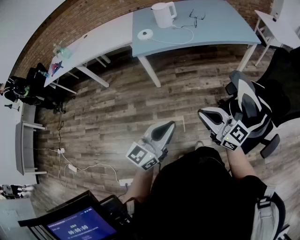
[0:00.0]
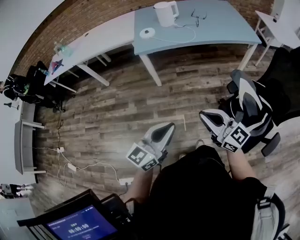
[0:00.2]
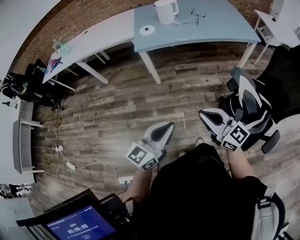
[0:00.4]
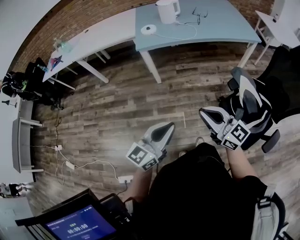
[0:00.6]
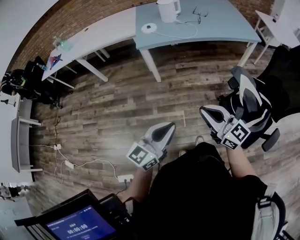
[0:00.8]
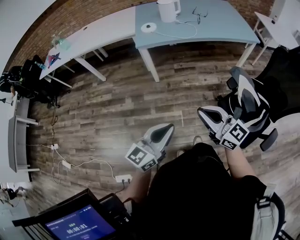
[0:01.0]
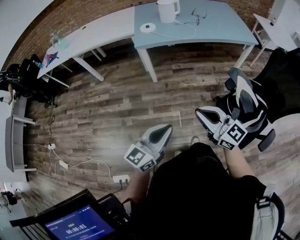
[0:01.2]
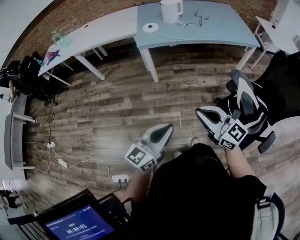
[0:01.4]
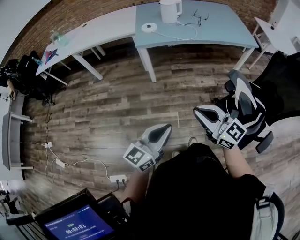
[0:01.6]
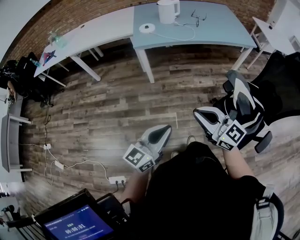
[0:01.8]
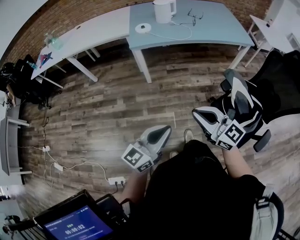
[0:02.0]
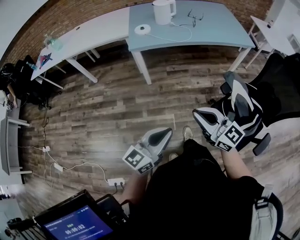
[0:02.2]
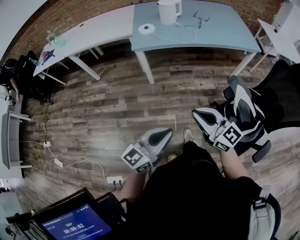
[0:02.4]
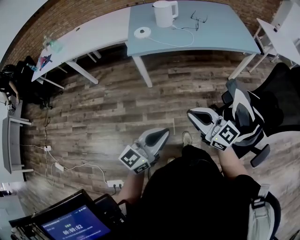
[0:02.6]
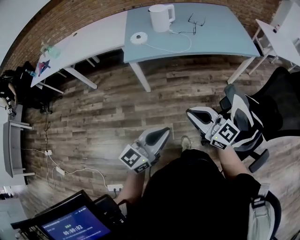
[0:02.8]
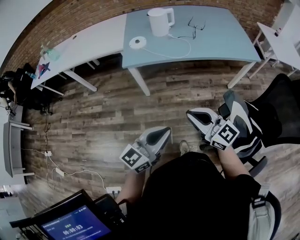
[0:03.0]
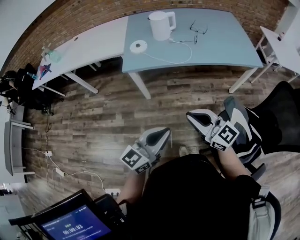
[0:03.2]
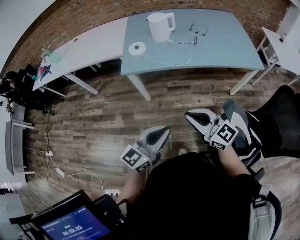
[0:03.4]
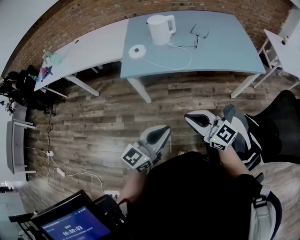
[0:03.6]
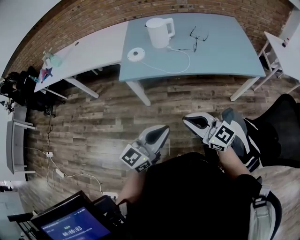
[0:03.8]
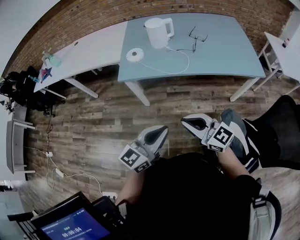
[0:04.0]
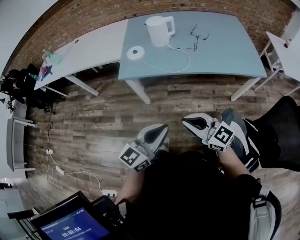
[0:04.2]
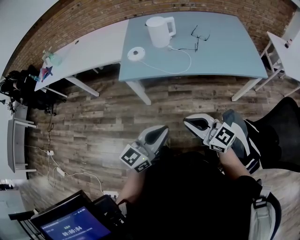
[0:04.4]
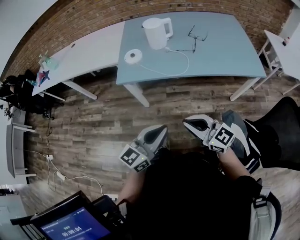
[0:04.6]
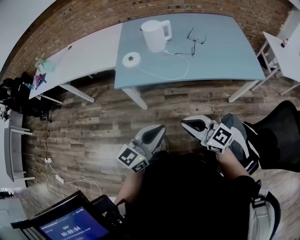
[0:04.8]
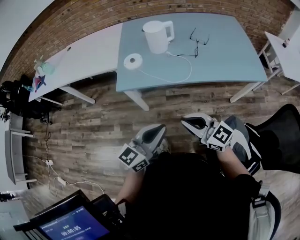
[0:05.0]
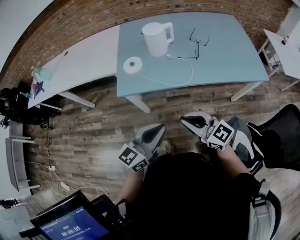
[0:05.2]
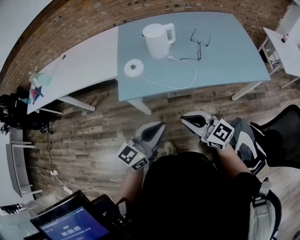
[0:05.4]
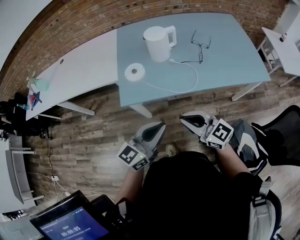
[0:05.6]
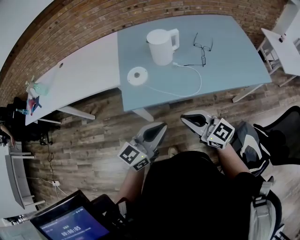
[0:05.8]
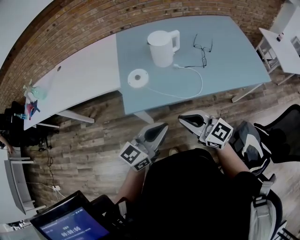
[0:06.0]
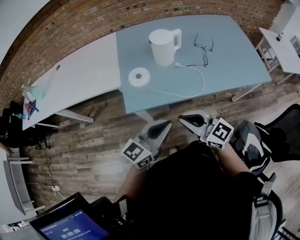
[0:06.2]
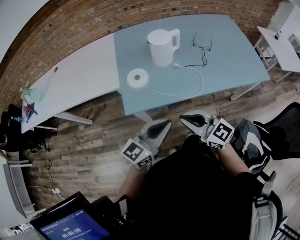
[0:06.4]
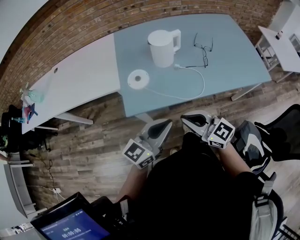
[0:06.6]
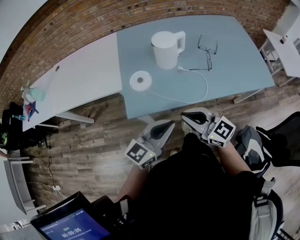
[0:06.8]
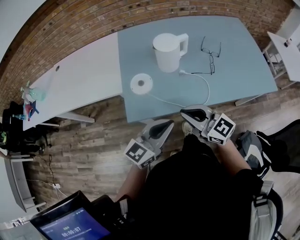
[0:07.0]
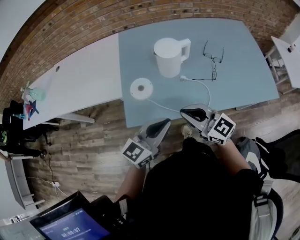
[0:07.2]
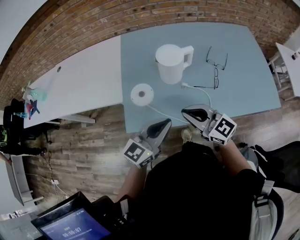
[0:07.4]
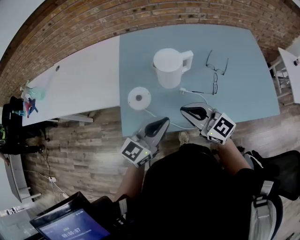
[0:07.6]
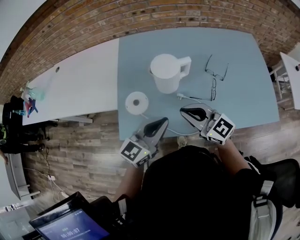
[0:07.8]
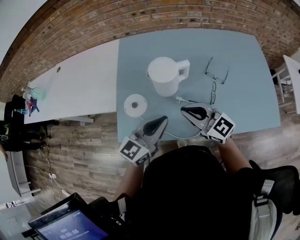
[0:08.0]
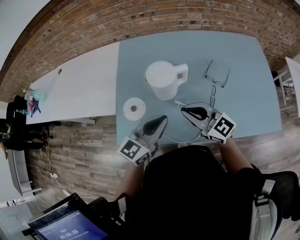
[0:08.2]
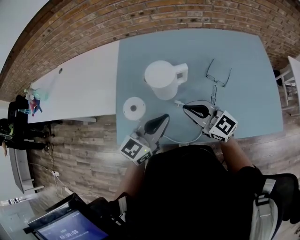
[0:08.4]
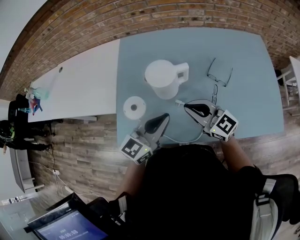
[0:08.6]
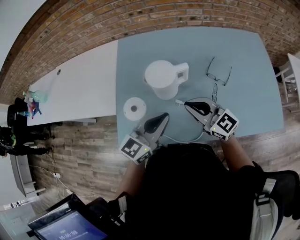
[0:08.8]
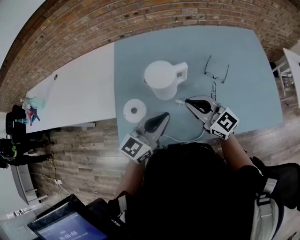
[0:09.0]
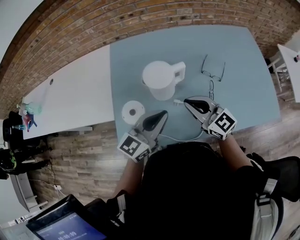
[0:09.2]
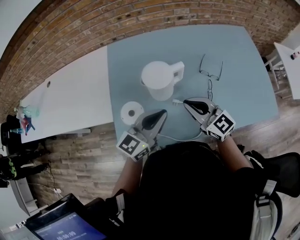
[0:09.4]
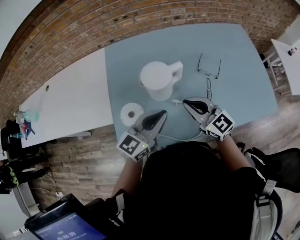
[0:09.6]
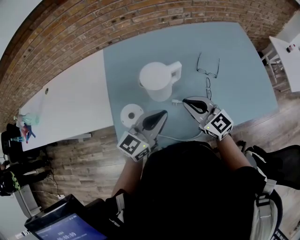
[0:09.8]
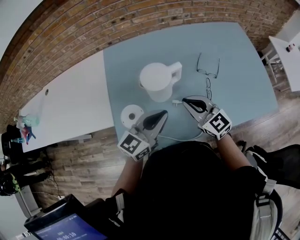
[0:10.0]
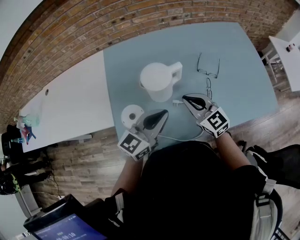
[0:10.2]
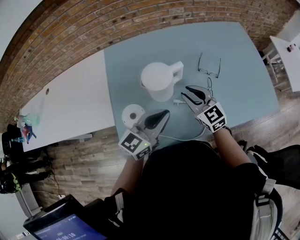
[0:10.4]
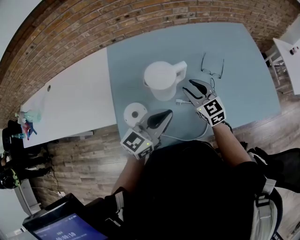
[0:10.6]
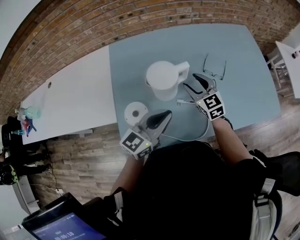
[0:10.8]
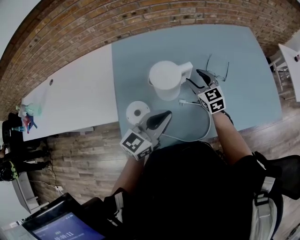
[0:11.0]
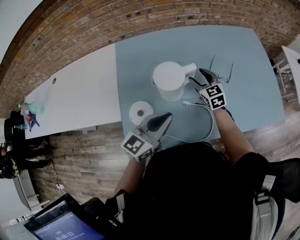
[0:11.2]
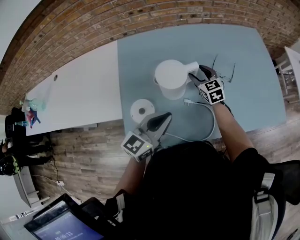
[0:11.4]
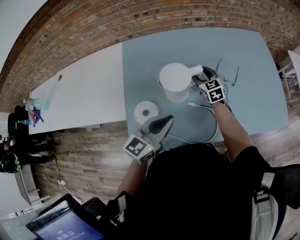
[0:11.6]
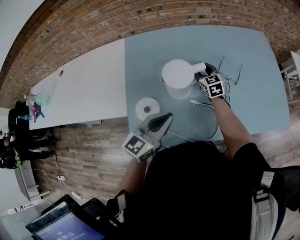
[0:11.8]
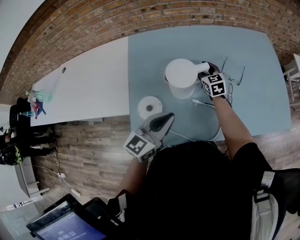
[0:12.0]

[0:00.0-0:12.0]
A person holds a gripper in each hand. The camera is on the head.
0:00.0 to 0:01.6: Both grippers move to the left, about 5 cm.
0:01.6 to 0:03.0: Both grippers travel together forward and to the right, approximately 20 cm.
0:03.0 to 0:04.4: Both grippers travel together forward and to the right, some 10 cm.
0:04.4 to 0:06.0: Both grippers travel together forward and to the left, roughly 25 cm.
0:06.0 to 0:07.6: The two grippers go about 20 cm forward.
0:07.6 to 0:09.0: Both grippers move forward and to the right, about 10 cm.
0:09.0 to 0:10.4: The right gripper travels downward by some 5 cm, rotates about 30 degrees, and opens.
0:10.4 to 0:12.0: The left gripper is displaced to the left by some 5 cm. Meanwhile the right gripper is displaced forward and downward by some 20 cm.

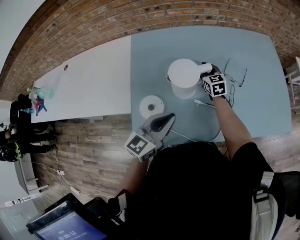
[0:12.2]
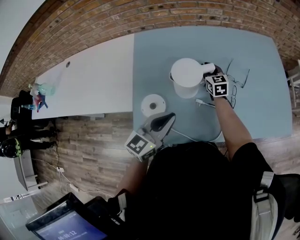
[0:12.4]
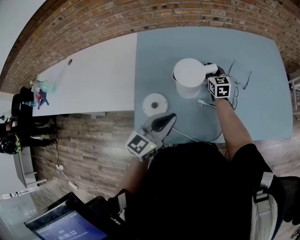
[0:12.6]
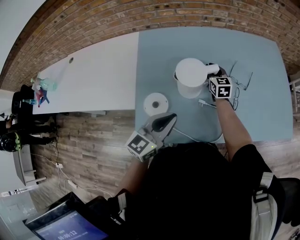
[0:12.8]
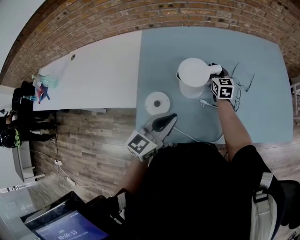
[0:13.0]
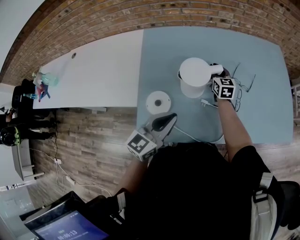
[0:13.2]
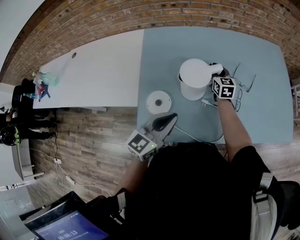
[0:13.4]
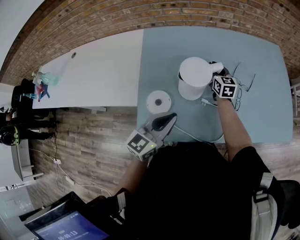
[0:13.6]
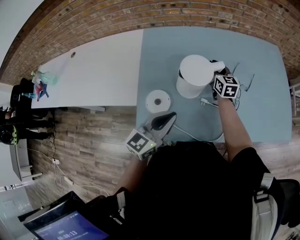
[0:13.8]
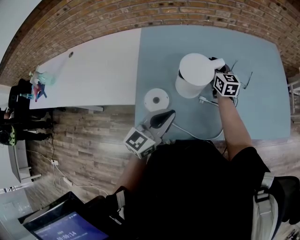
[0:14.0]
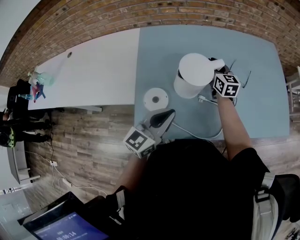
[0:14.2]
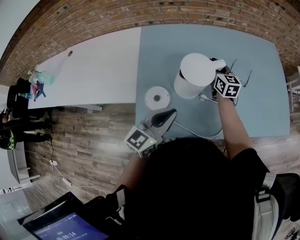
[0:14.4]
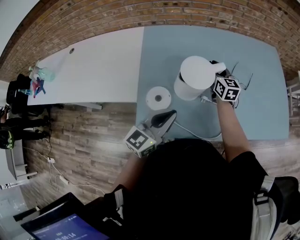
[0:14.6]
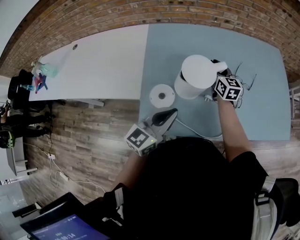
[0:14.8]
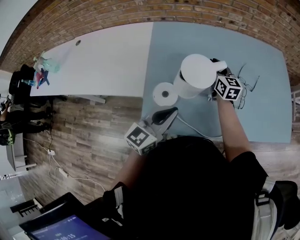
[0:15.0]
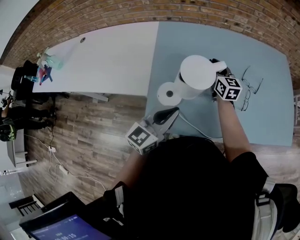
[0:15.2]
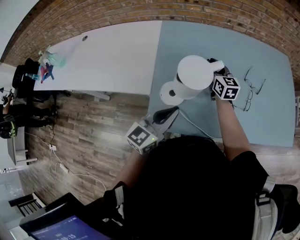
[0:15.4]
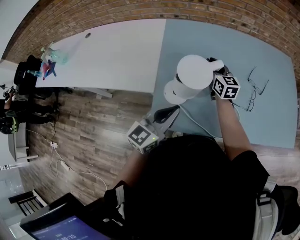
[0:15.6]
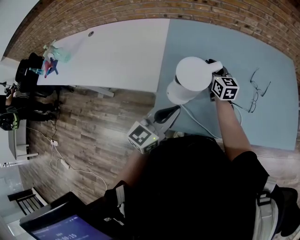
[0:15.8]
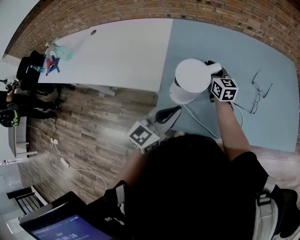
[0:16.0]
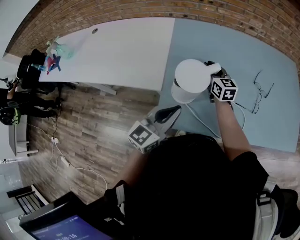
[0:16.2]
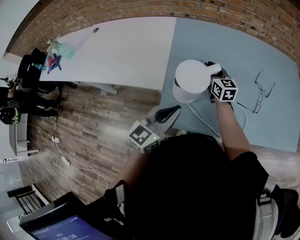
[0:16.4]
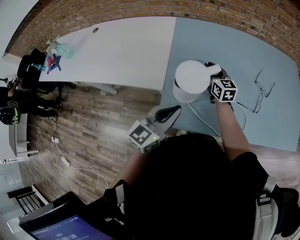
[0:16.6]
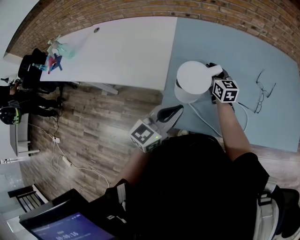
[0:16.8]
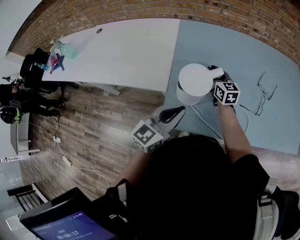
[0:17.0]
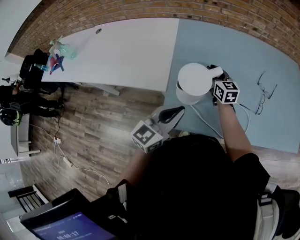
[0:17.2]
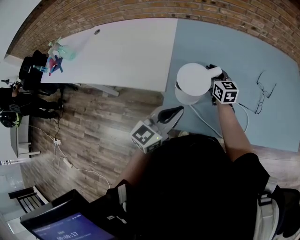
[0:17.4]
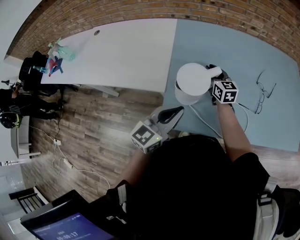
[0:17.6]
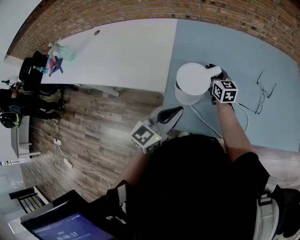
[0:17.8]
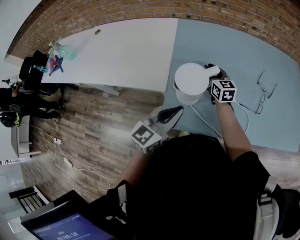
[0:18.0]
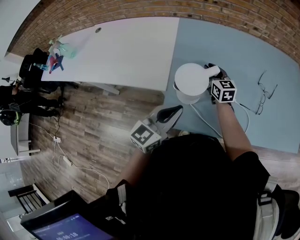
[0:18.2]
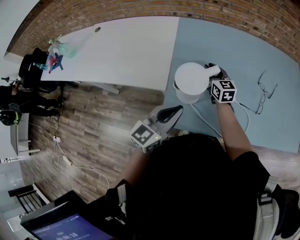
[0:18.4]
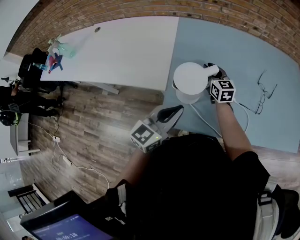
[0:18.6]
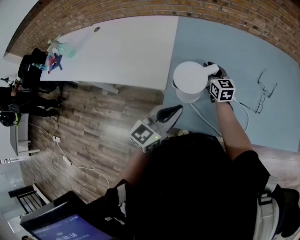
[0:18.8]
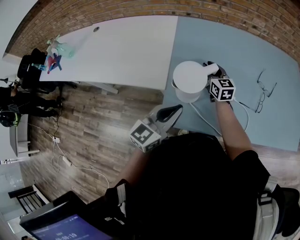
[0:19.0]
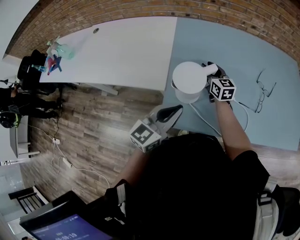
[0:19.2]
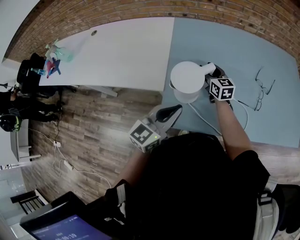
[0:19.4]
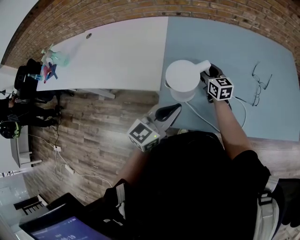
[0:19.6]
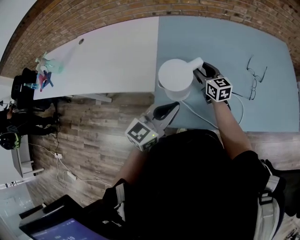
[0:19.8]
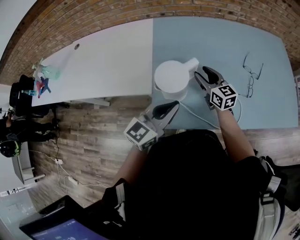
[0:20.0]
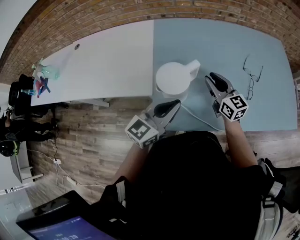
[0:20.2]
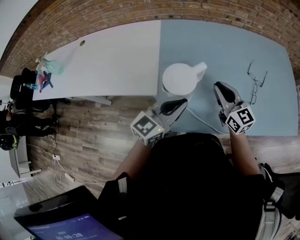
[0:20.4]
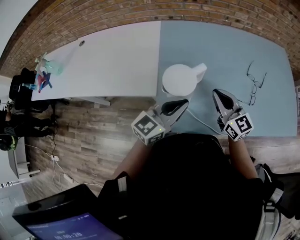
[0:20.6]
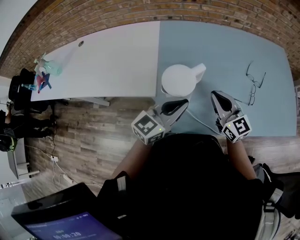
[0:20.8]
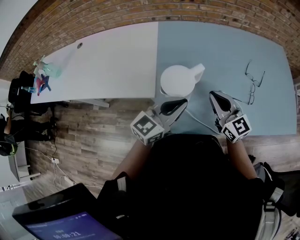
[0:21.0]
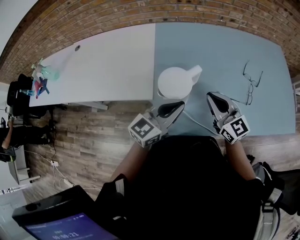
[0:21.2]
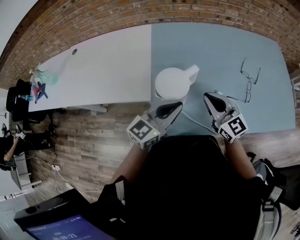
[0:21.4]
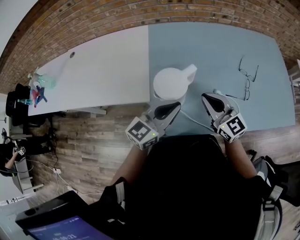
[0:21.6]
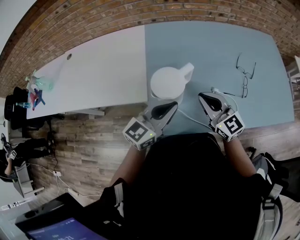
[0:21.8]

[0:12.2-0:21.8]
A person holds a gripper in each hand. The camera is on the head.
0:12.2 to 0:13.8: The right gripper travels upward by about 5 cm.
0:13.8 to 0:15.4: The right gripper shifts about 10 cm to the left and backward. Meanwhile the left gripper heads to the left, covering approximately 5 cm.
0:15.4 to 0:17.0: The right gripper goes about 10 cm to the left.
0:17.0 to 0:18.6: The grippers make only small movements.
0:18.6 to 0:20.2: The right gripper heads backward, to the right and upward, covering some 15 cm.
0:20.2 to 0:21.8: The right gripper goes some 10 cm backward, and closes up.

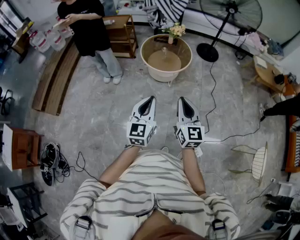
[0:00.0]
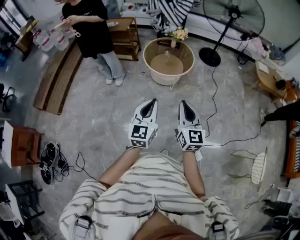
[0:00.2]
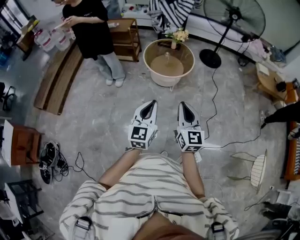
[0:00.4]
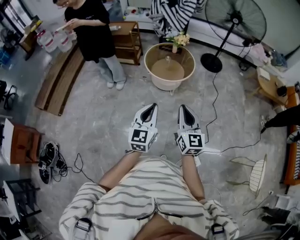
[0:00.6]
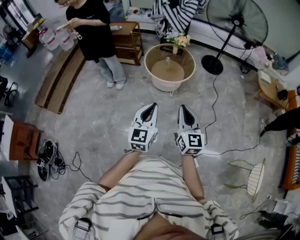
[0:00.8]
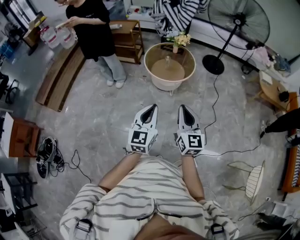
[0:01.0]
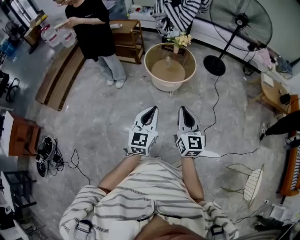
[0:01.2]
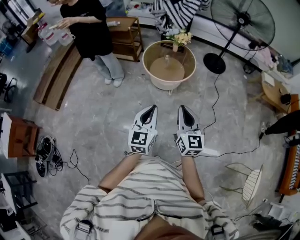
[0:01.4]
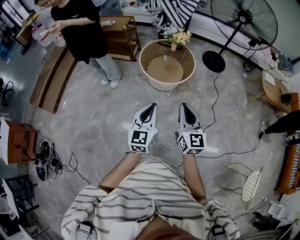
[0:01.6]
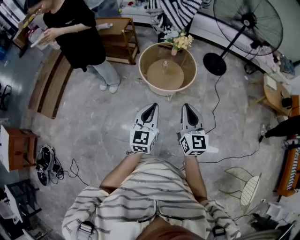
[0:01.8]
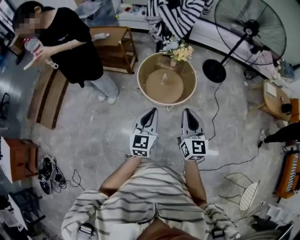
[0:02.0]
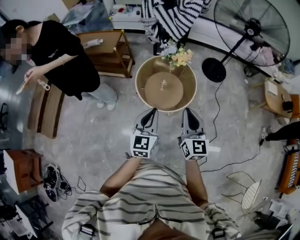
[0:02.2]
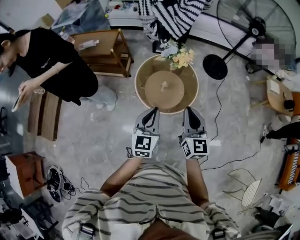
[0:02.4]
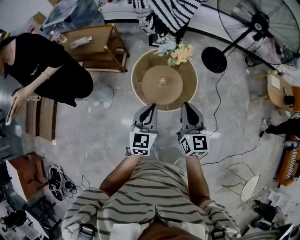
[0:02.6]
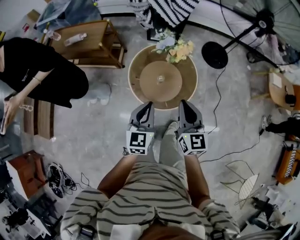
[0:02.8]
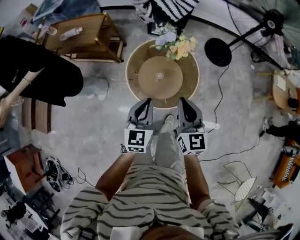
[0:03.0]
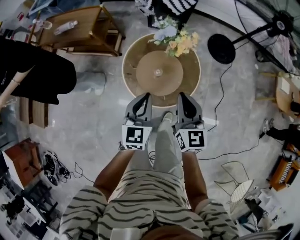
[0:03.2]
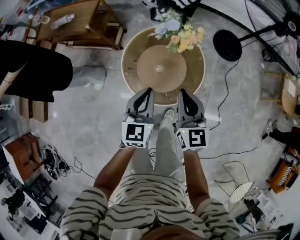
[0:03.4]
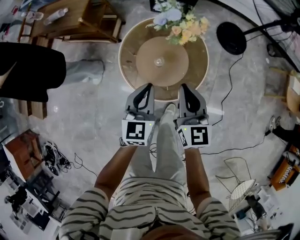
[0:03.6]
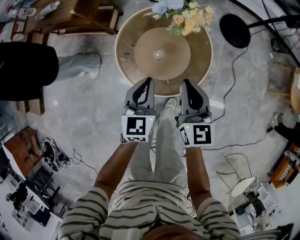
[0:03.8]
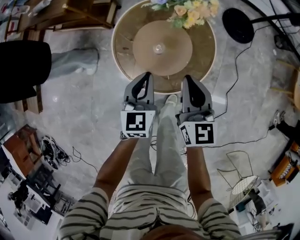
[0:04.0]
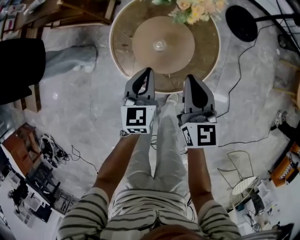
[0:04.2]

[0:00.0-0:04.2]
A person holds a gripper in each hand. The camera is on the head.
0:00.0 to 0:01.4: The left gripper travels to the right and forward by about 10 cm; the right gripper goes roughly 10 cm forward and to the right.
0:01.4 to 0:02.8: The two grippers travel together, forward, about 50 cm.
0:02.8 to 0:04.2: The two grippers go some 25 cm downward.
